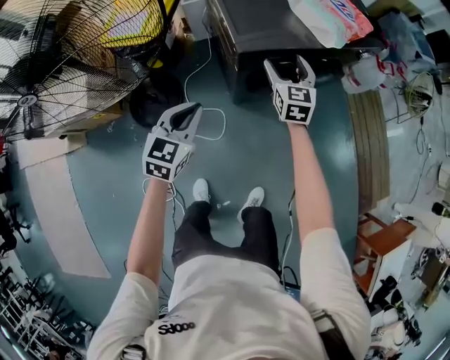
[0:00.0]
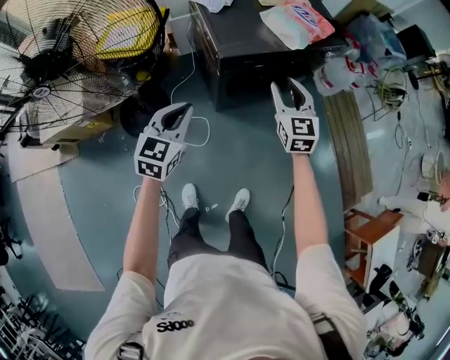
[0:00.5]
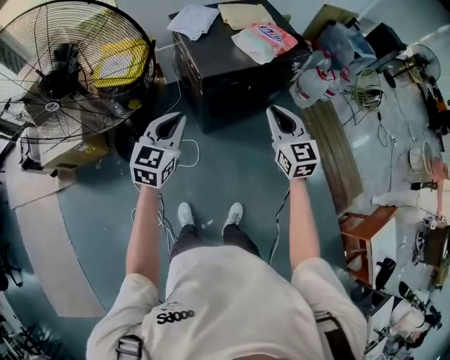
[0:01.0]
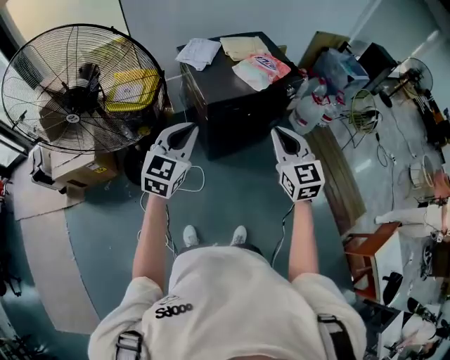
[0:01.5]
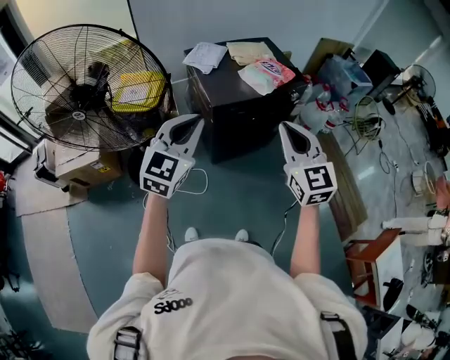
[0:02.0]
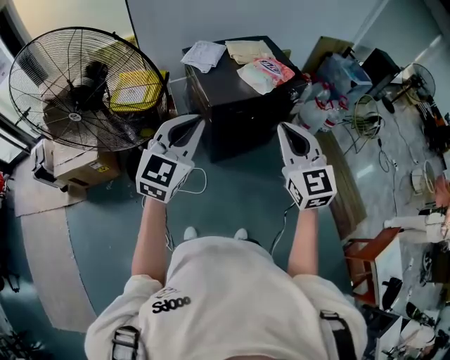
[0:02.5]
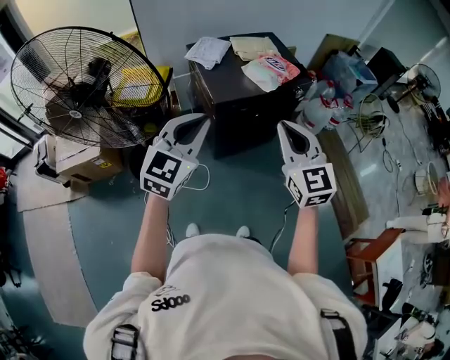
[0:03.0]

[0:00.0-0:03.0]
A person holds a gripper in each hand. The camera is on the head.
0:00.0 to 0:01.5: The left gripper moves upward and backward, roughly 30 cm, and rotates about 20 degrees. The right gripper moves backward and upward, approximately 40 cm, and closes up.
0:01.5 to 0:03.0: Both grippers move upward, about 5 cm.

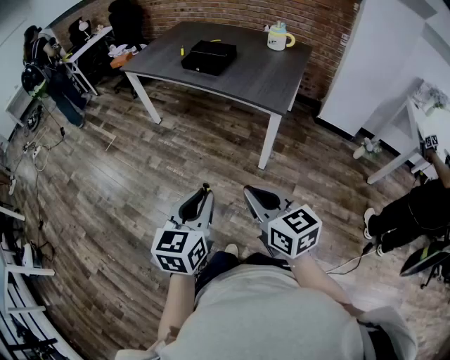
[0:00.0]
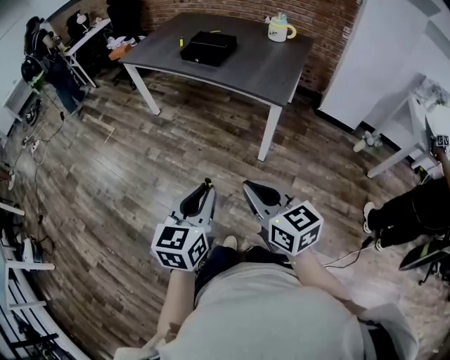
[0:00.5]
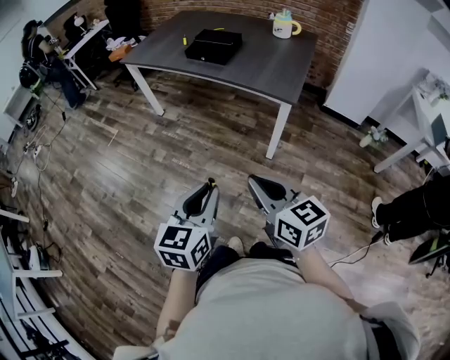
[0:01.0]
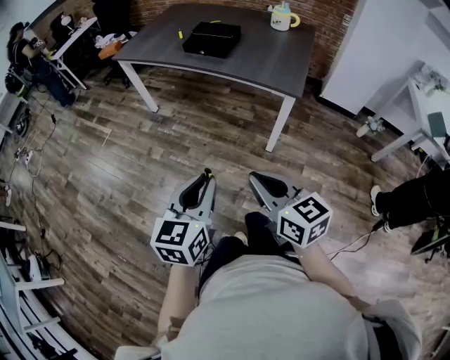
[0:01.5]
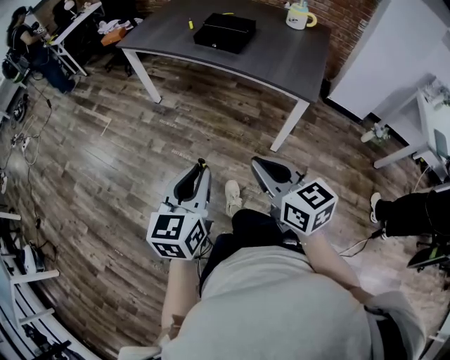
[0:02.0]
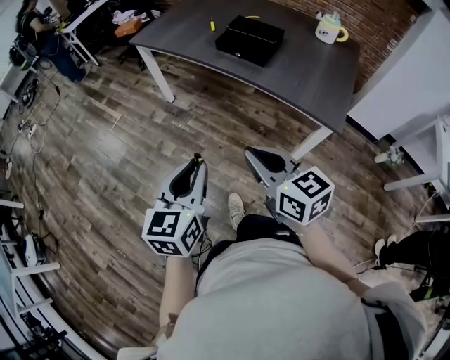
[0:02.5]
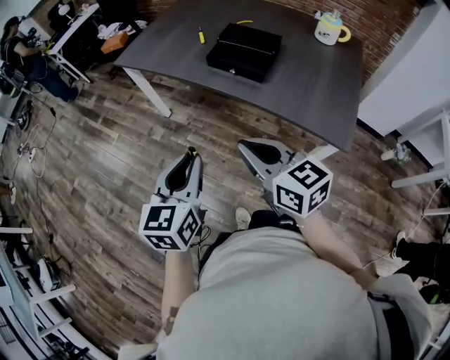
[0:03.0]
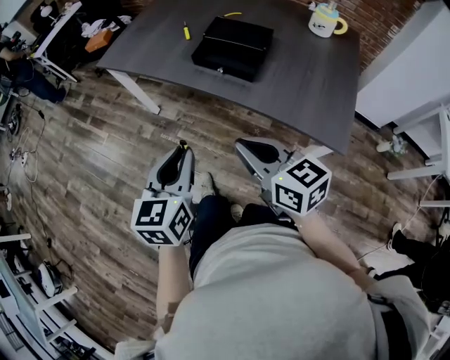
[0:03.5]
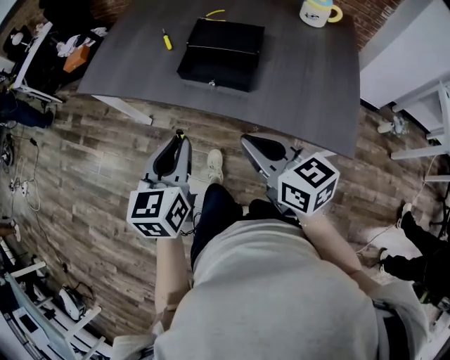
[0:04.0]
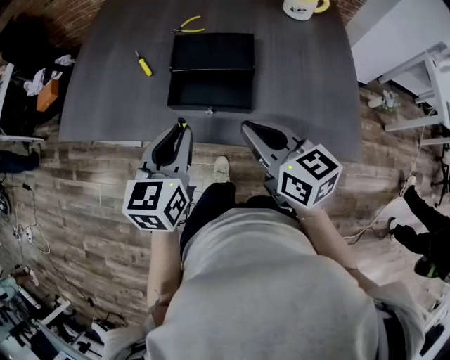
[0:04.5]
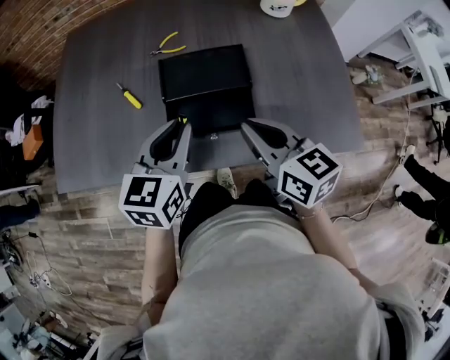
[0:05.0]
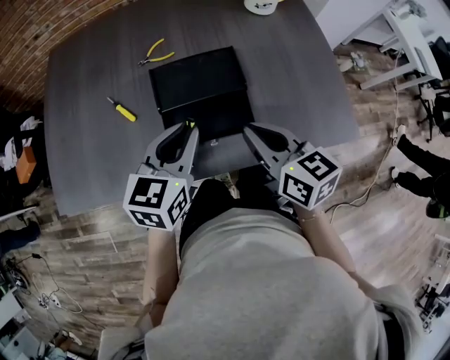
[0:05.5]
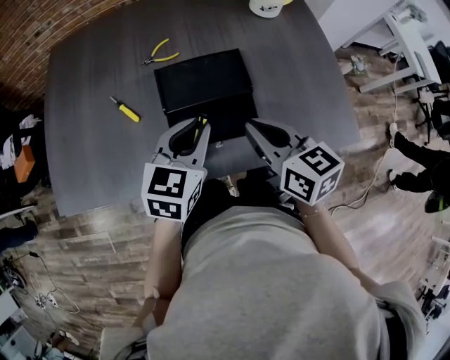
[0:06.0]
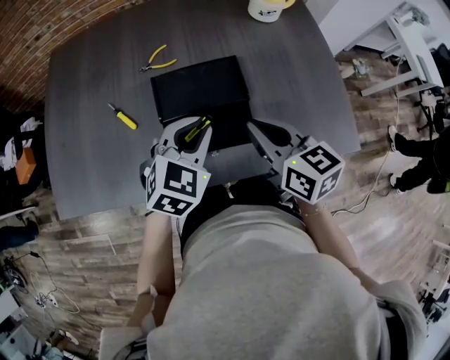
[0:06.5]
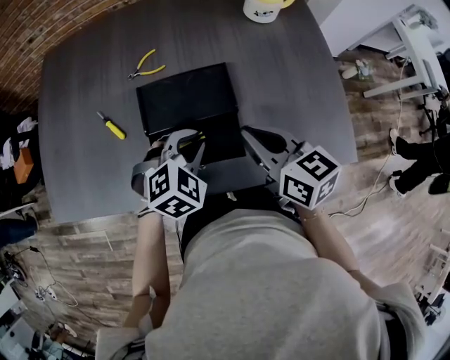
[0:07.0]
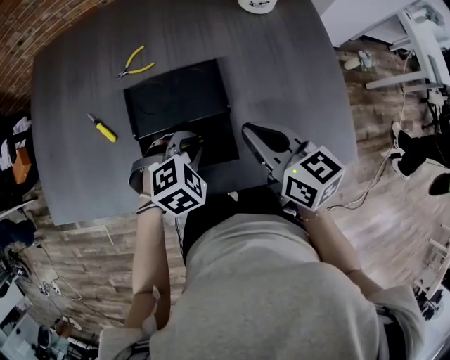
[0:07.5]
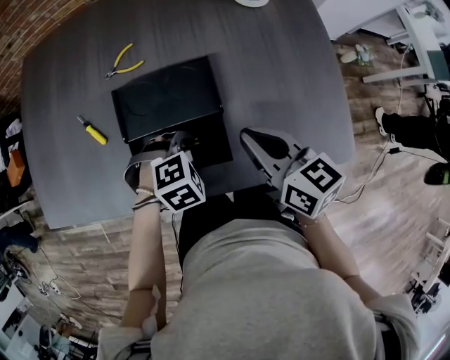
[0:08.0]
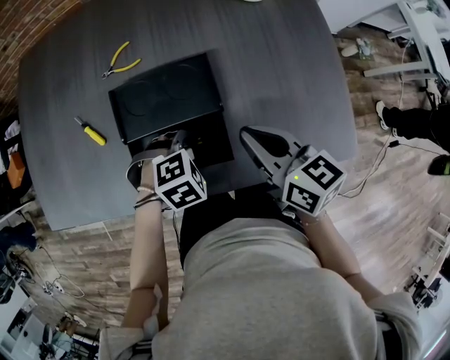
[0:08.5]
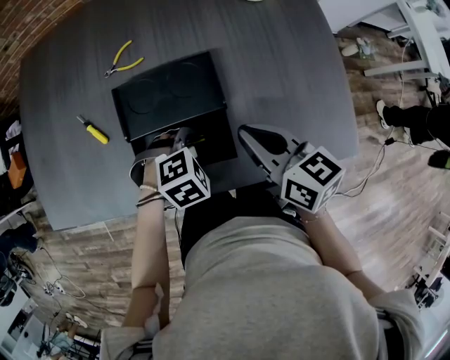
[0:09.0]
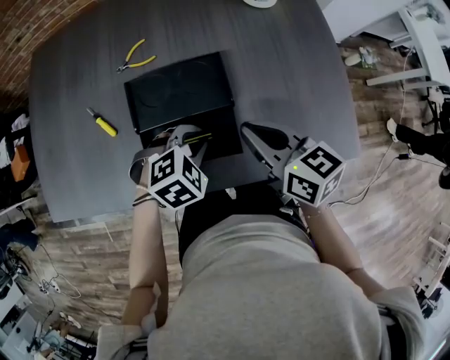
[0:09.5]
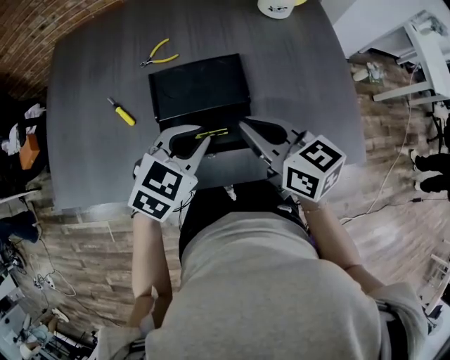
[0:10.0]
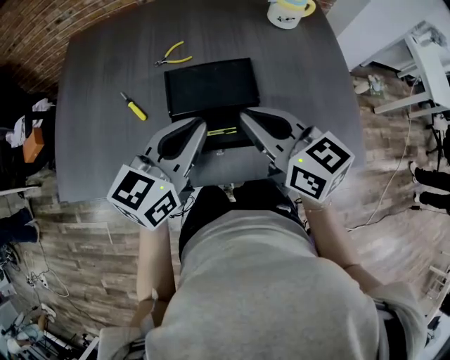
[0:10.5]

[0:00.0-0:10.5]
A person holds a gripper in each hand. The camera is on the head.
0:00.0 to 0:02.0: Both grippers move forward and to the left, some 15 cm.
0:02.0 to 0:04.0: The two grippers travel together, forward, roughly 40 cm.
0:04.0 to 0:06.5: The right gripper ends up approximately 25 cm from where it was, and swivels some 30 degrees; the left gripper ends up about 30 cm from where it was, and swivels approximately 60 degrees.
0:06.5 to 0:08.5: The right gripper moves to the right, some 5 cm, while the left gripper is displaced downward by about 15 cm, and points its fingers about 40 degrees further downward.
0:08.5 to 0:10.5: The right gripper shifts some 10 cm to the left and upward. The left gripper shifts approximately 20 cm upward, and angles its fingers upward, by approximately 60 degrees.

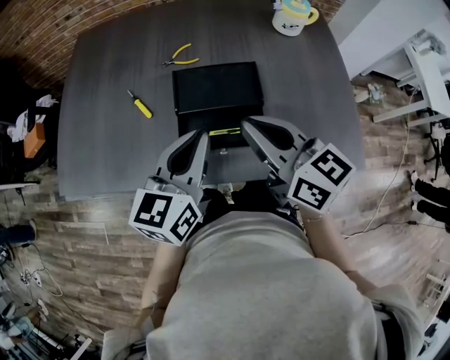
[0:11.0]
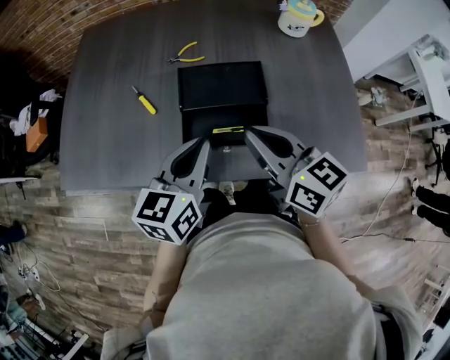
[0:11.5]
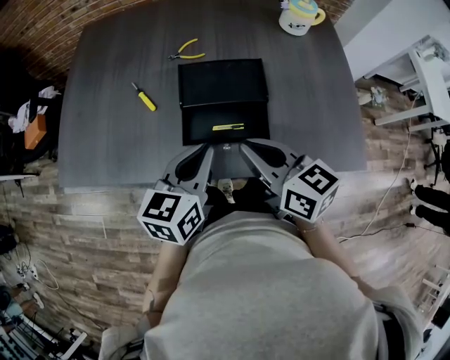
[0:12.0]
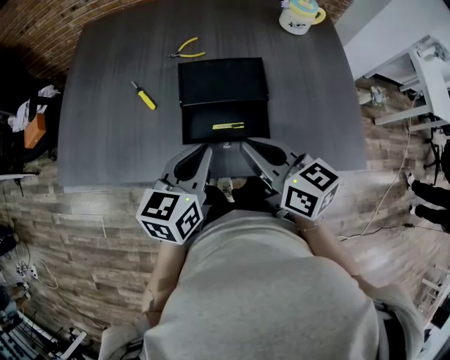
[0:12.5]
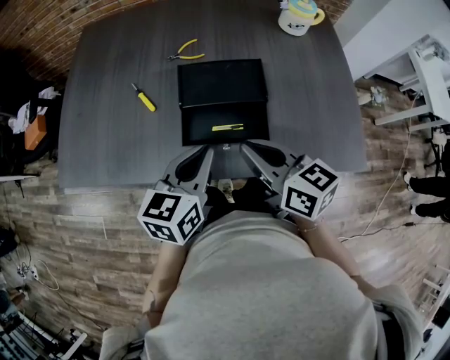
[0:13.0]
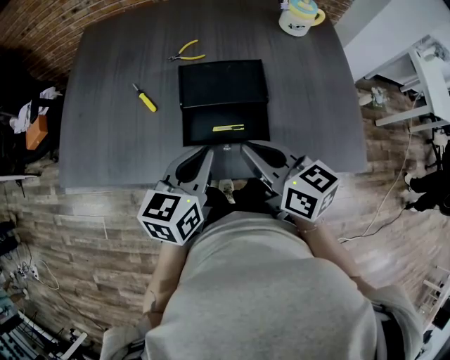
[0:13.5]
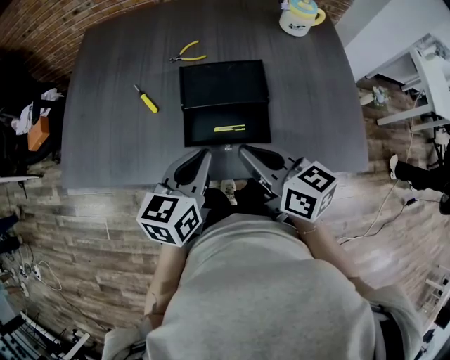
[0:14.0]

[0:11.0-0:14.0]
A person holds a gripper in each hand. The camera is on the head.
0:11.0 to 0:12.5: The grippers both shift downward by some 5 cm.
0:12.5 to 0:14.0: Both grippers stay about where they are.

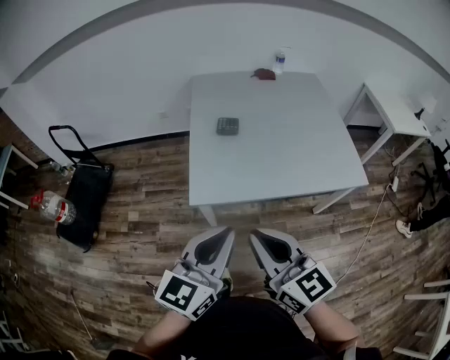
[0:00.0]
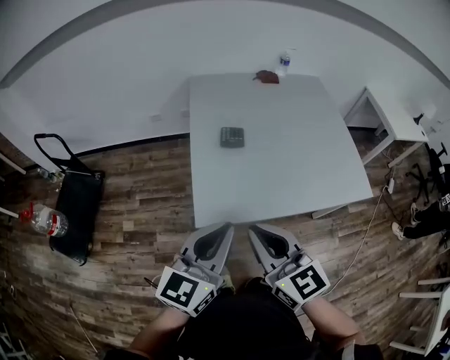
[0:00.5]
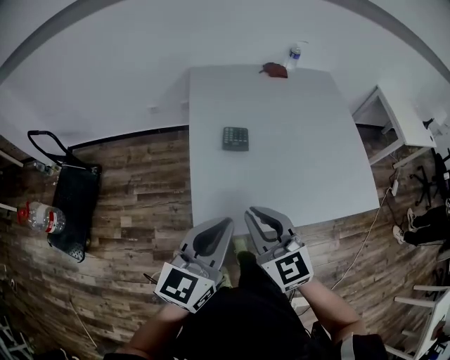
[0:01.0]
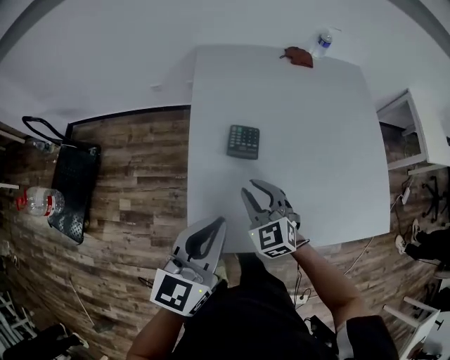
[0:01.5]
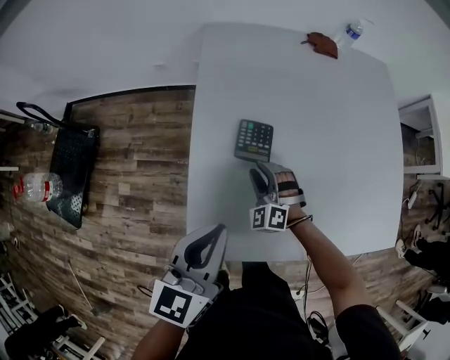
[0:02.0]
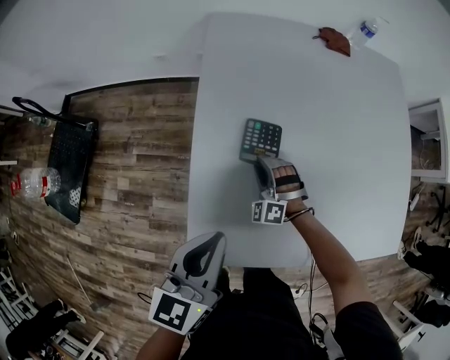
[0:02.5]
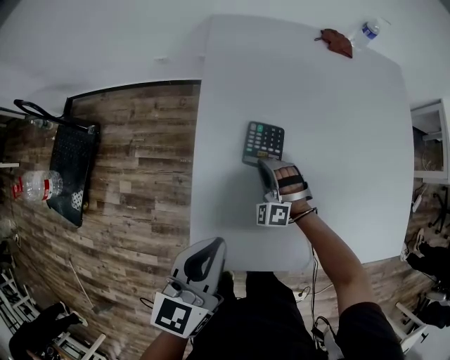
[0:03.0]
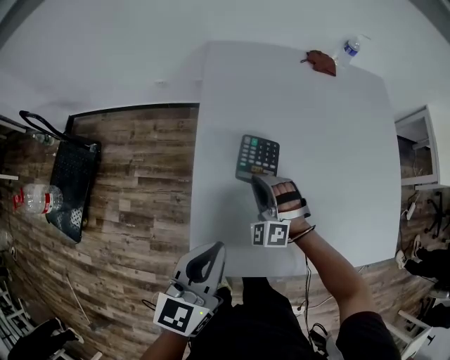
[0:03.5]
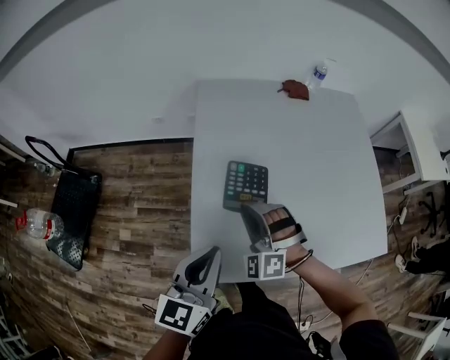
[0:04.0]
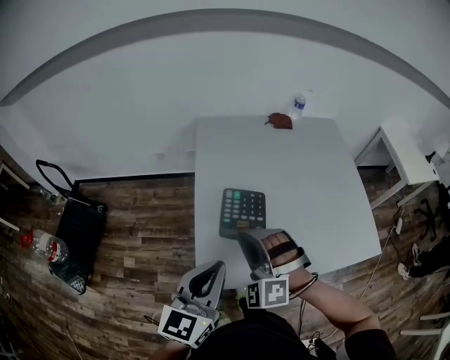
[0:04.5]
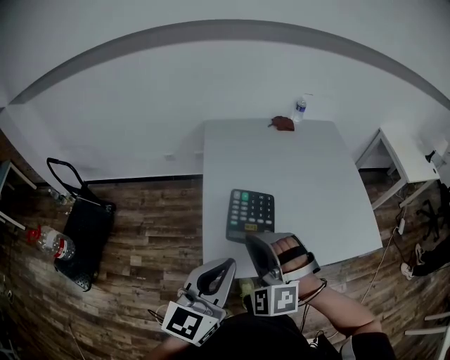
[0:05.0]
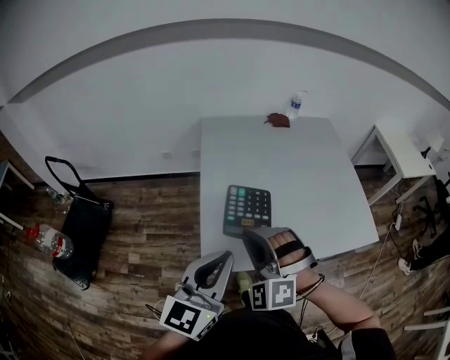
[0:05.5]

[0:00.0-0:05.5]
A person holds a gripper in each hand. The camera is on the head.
0:00.0 to 0:02.0: The left gripper heads forward, covering roughly 35 cm, and swivels about 20 degrees, while the right gripper moves forward and downward, approximately 60 cm, rotates around the line of its fingers by approximately 60 degrees, counterclockwise from behind, and opens.
0:02.0 to 0:03.5: The right gripper shifts by about 5 cm.
0:03.5 to 0:05.5: The left gripper moves upward and backward, some 20 cm, and rotates roughly 20 degrees; the right gripper travels upward and backward by some 35 cm.

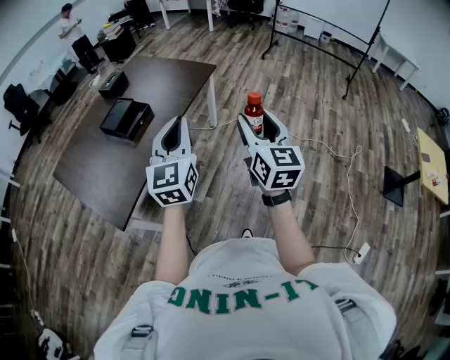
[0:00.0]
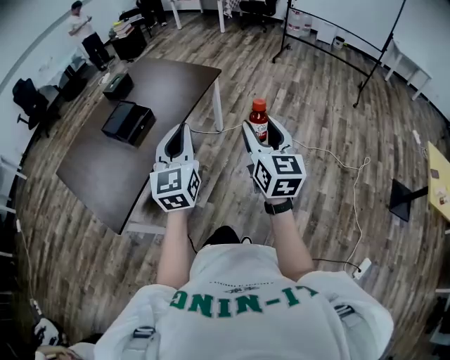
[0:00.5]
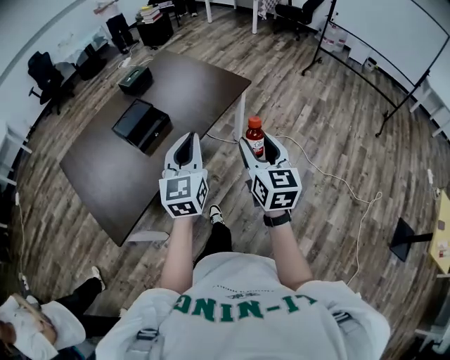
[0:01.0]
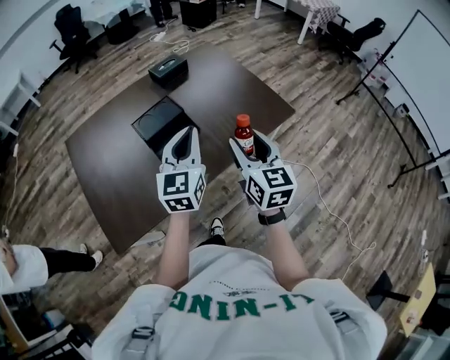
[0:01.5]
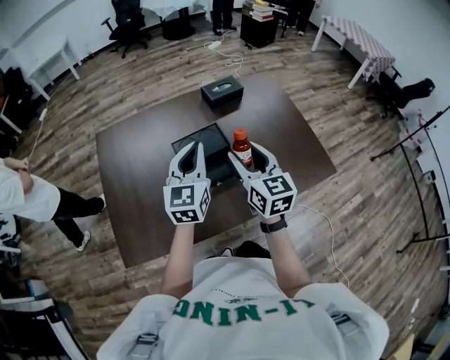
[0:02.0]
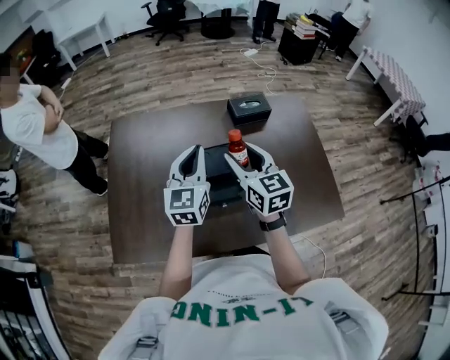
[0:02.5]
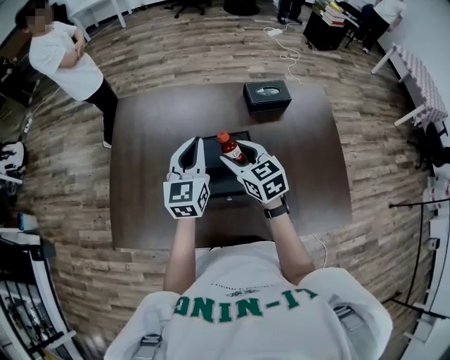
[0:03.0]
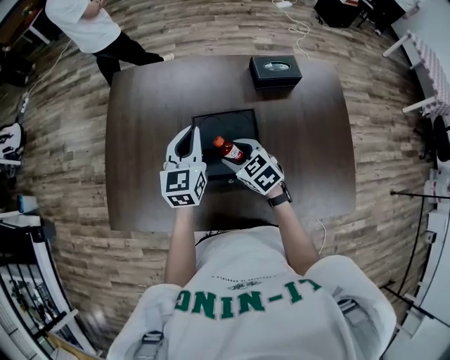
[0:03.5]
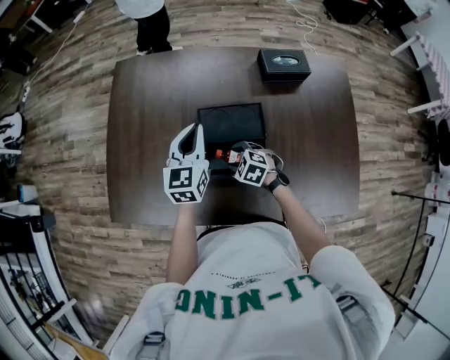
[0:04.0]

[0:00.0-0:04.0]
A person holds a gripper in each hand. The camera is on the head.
0:00.0 to 0:02.0: The pair of grippers is taken approximately 60 cm. The right gripper changes its angle by roughly 50 degrees. Meanwhile the left gripper swivels some 40 degrees.
0:02.0 to 0:04.0: The left gripper shifts by approximately 25 cm, and turns by some 20 degrees; the right gripper shifts about 35 cm downward, and angles its fingers downward, by about 50 degrees.
